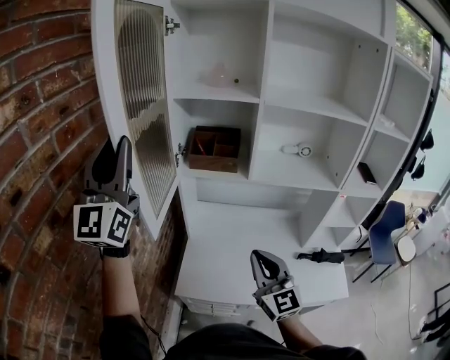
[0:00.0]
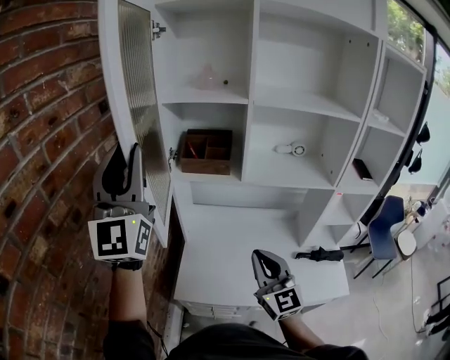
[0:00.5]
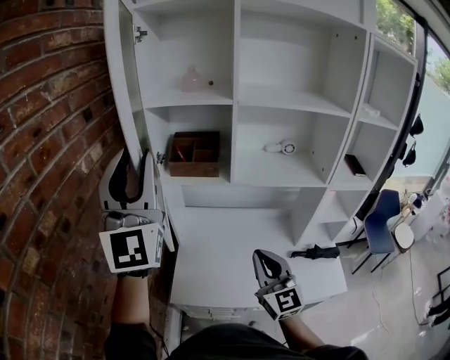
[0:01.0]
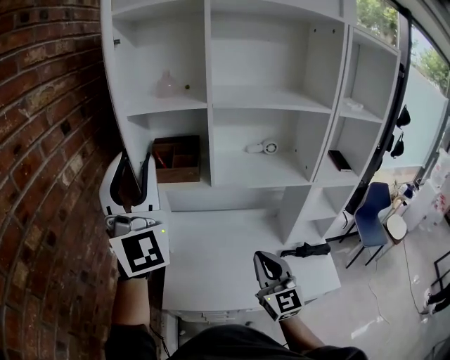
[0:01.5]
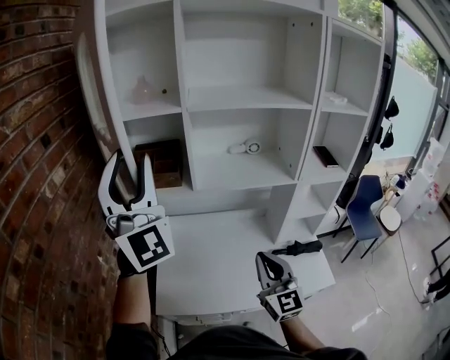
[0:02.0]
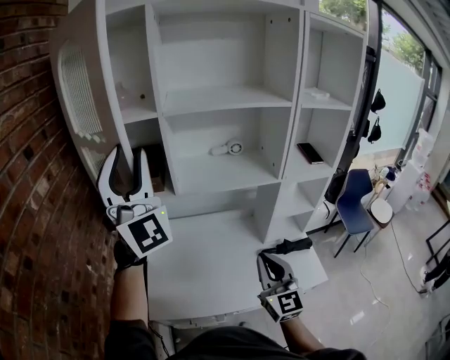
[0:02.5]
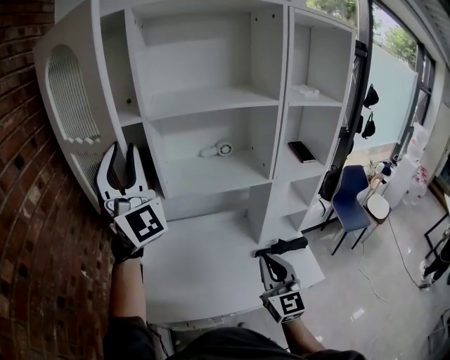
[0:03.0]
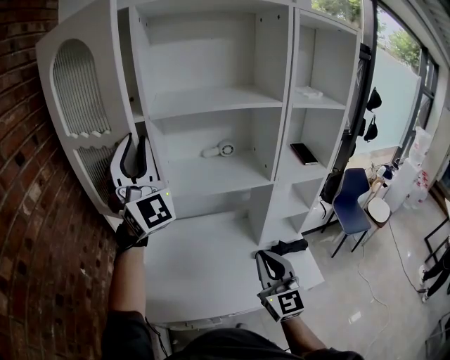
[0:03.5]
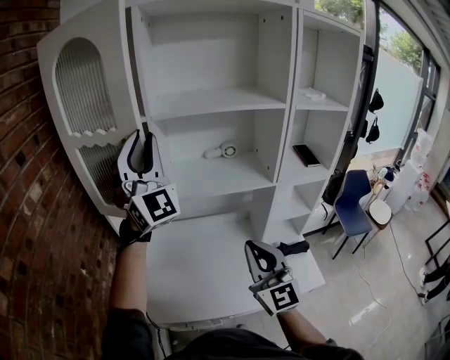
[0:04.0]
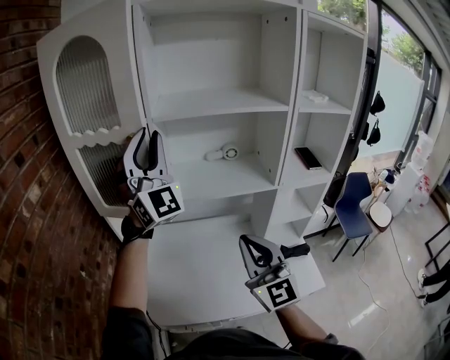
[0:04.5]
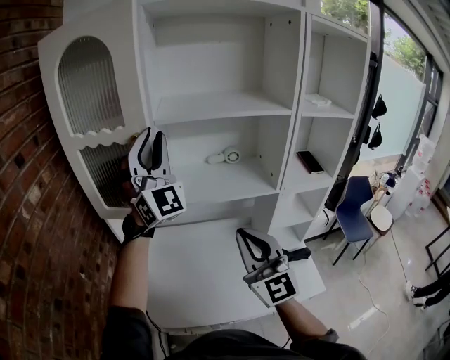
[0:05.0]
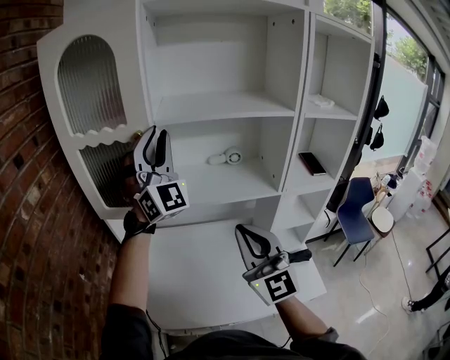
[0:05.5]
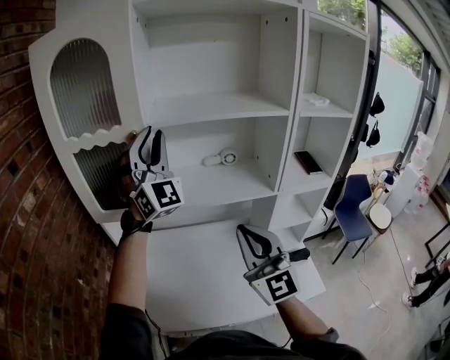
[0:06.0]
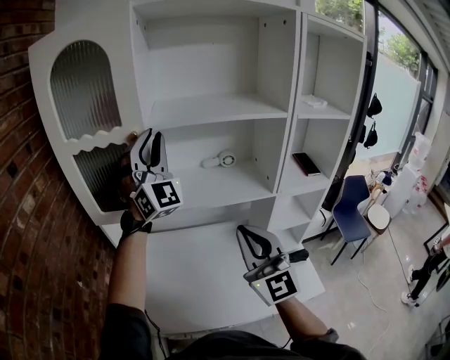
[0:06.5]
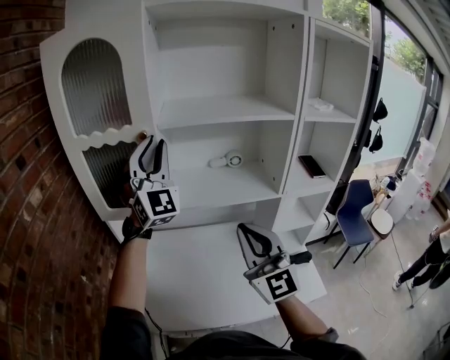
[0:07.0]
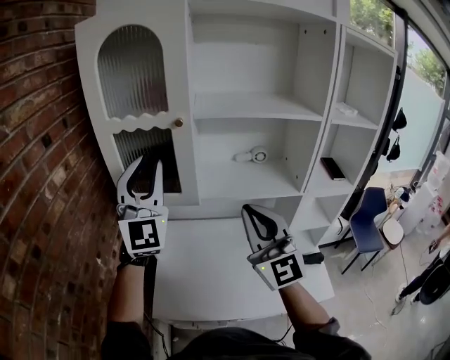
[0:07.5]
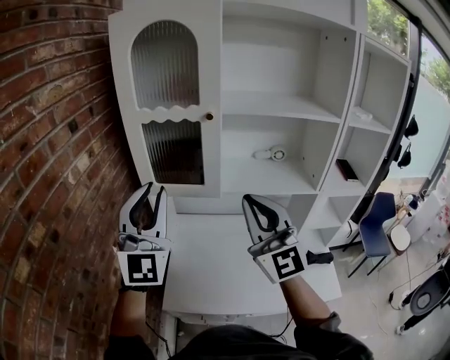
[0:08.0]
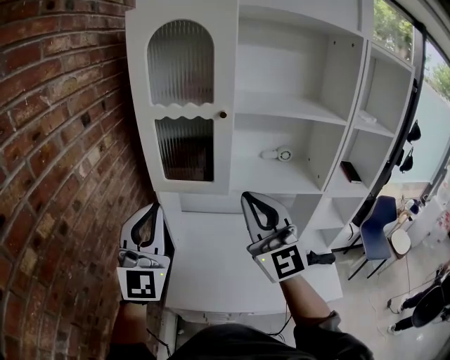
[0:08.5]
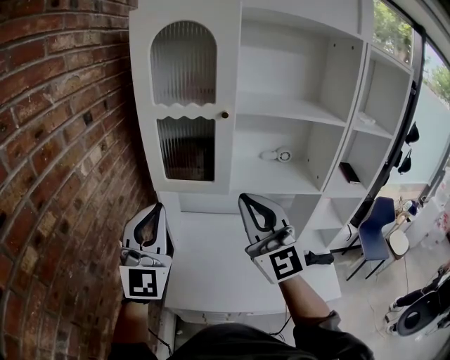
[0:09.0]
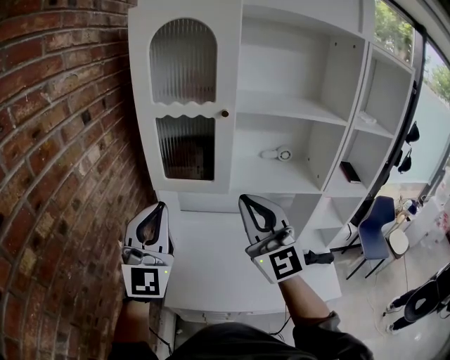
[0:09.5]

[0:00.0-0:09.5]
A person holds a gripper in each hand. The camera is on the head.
0:00.0 to 0:02.0: Both grippers travel together to the right, roughly 20 cm. The left gripper changes its angle by approximately 30 degrees.
0:02.0 to 0:04.0: The right gripper heads upward, covering approximately 5 cm. The left gripper travels forward and to the right by some 15 cm.
0:04.0 to 0:05.5: The left gripper travels forward by roughly 5 cm, while the right gripper goes about 10 cm upward and forward.
0:05.5 to 0:07.5: The left gripper heads to the left and backward, covering about 15 cm, and swivels approximately 20 degrees. The right gripper travels to the left by approximately 5 cm.
0:07.5 to 0:09.5: The right gripper is displaced to the left by roughly 10 cm. The left gripper moves backward, to the left and downward, about 15 cm.

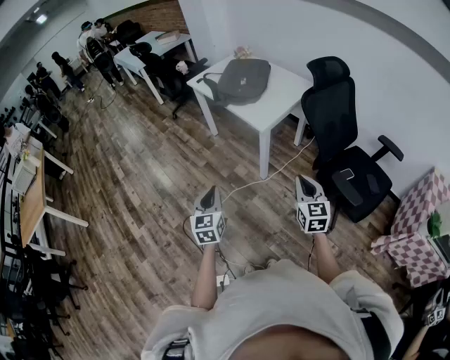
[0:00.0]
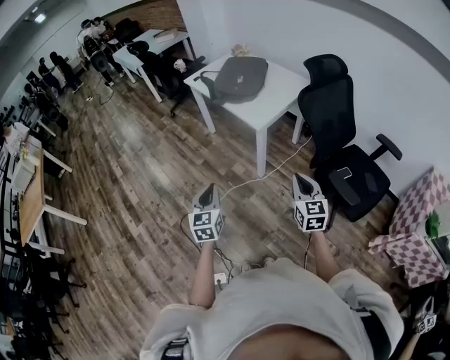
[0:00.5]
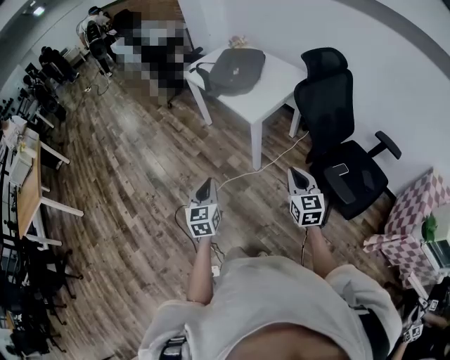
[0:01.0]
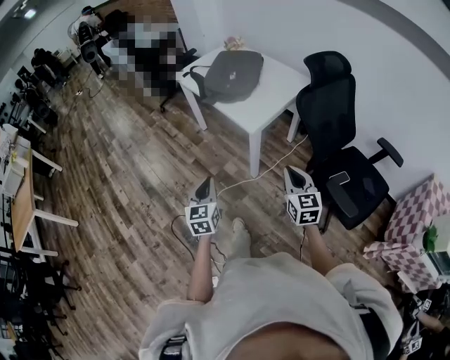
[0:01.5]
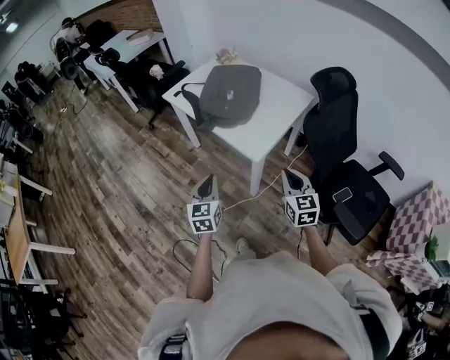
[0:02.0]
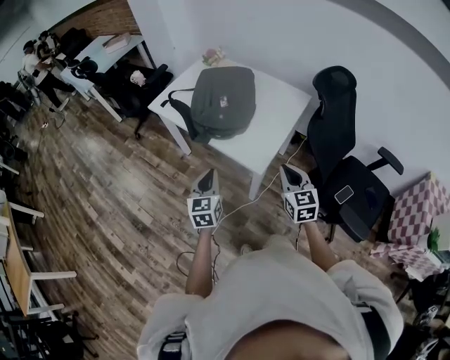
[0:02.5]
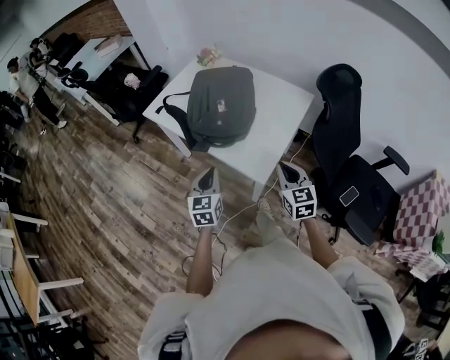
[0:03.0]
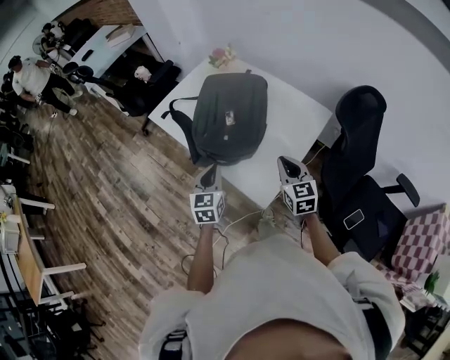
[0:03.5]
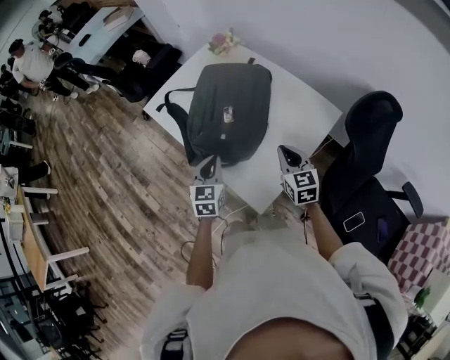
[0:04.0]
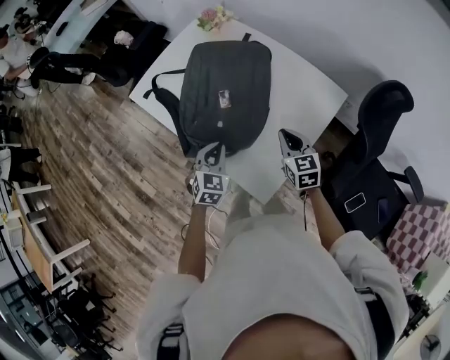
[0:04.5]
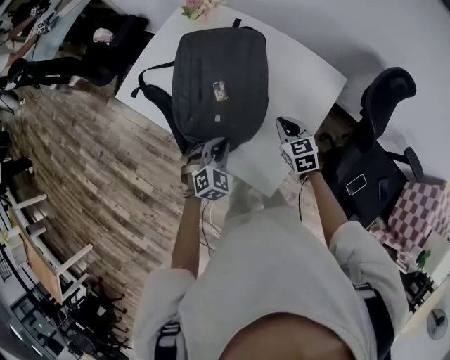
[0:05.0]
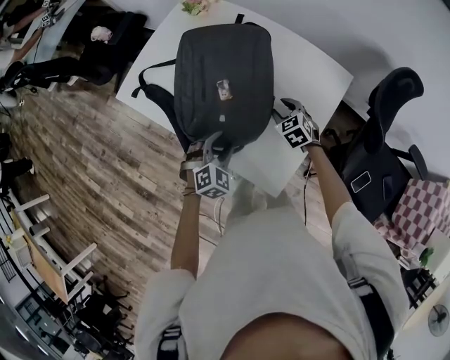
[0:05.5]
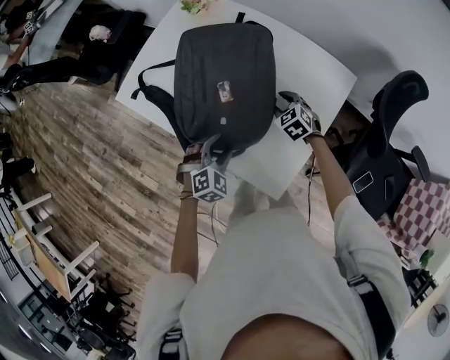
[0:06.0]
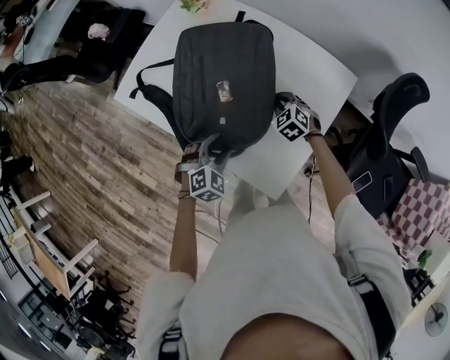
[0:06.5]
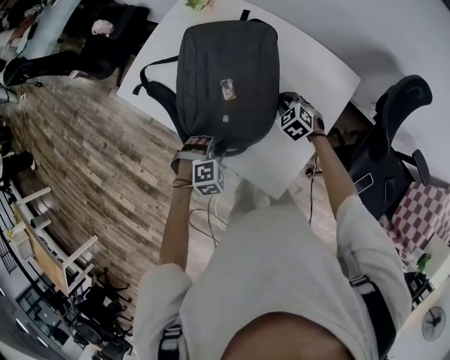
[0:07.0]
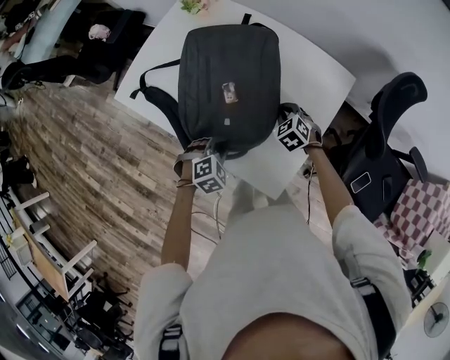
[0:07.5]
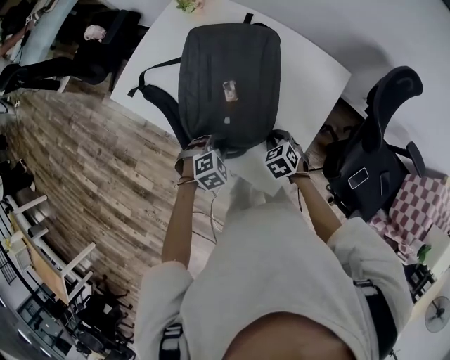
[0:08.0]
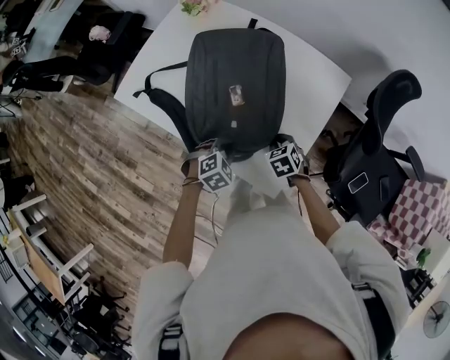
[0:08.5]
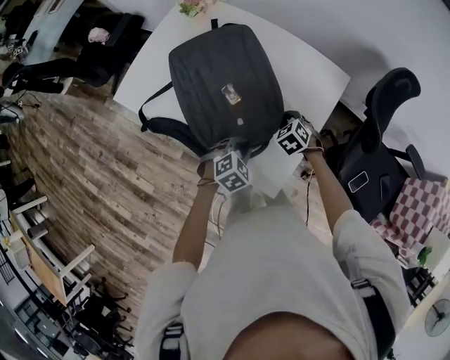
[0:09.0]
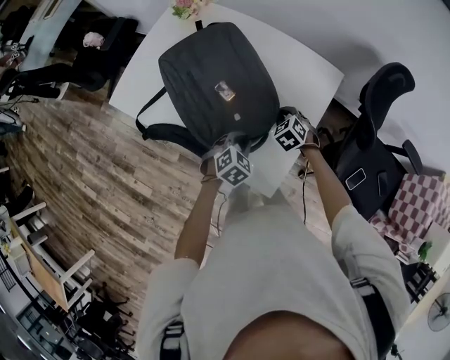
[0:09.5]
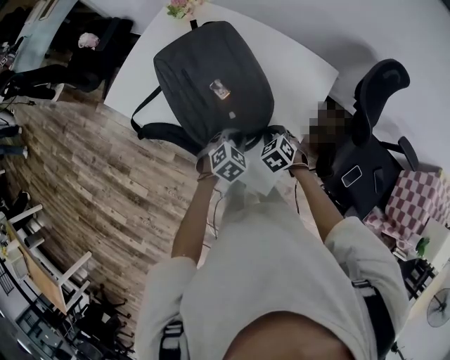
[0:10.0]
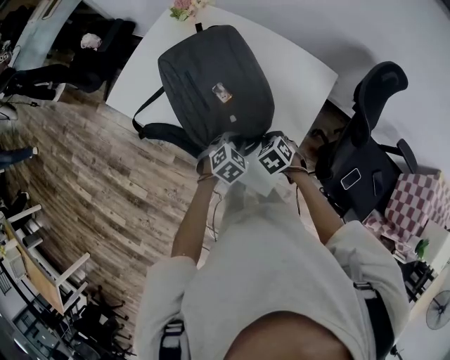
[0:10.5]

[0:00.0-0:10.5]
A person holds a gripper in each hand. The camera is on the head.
0:00.0 to 0:02.0: Both grippers move forward, about 25 cm.
0:02.0 to 0:04.0: The grippers both shift forward by approximately 35 cm.
0:04.0 to 0:06.5: The left gripper goes some 10 cm downward, rolls clockwise, seen from behind, by about 50 degrees, and opens up, while the right gripper shifts approximately 20 cm downward and forward, angles its fingers downward, by approximately 30 degrees, and opens and closes again.
0:06.5 to 0:08.5: The right gripper is displaced backward by some 15 cm, and rotates some 30 degrees, while the left gripper changes place by approximately 5 cm, and closes up.
0:08.5 to 0:10.5: The right gripper moves approximately 10 cm forward and comes back, while the left gripper goes about 5 cm to the right.

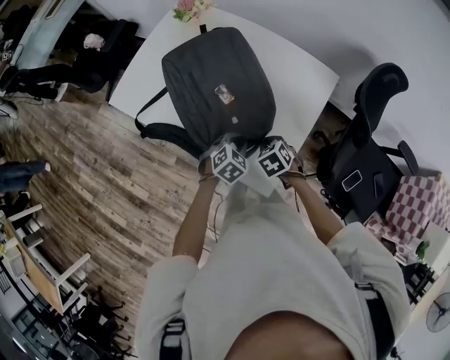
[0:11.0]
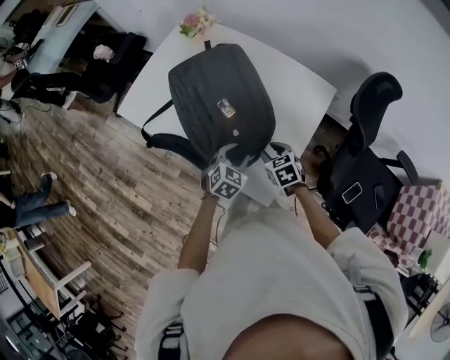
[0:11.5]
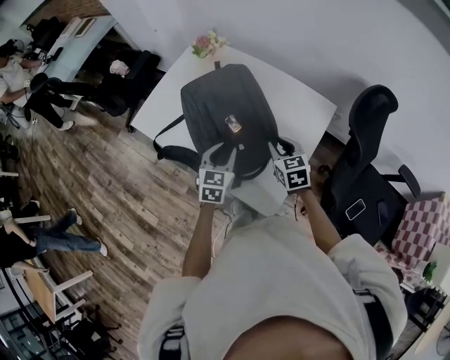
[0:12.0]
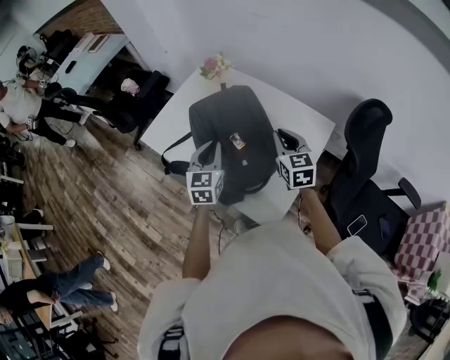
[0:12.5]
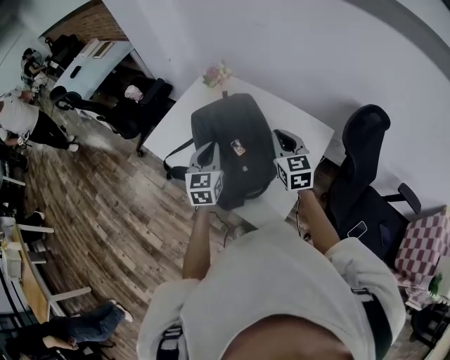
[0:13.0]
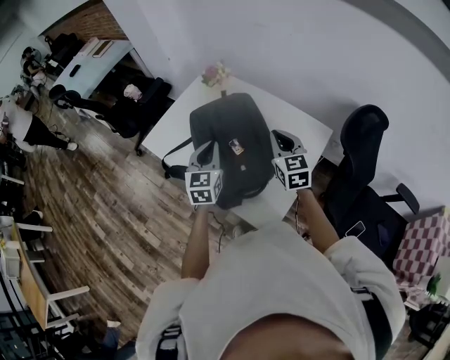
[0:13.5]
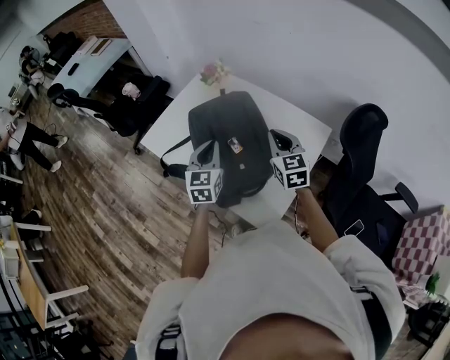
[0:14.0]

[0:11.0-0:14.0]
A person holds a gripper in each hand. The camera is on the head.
0:11.0 to 0:12.5: The left gripper heads upward and to the left, covering some 25 cm, tips its fingers upward by about 40 degrees, and opens, then closes once more. Meanwhile the right gripper goes some 25 cm upward and forward, angles its fingers upward, by roughly 50 degrees, and opens, then closes once more.
0:12.5 to 0:14.0: The grippers make only small movements.

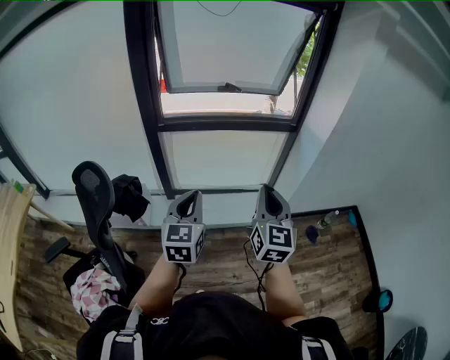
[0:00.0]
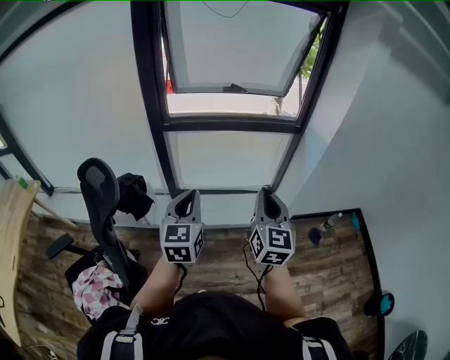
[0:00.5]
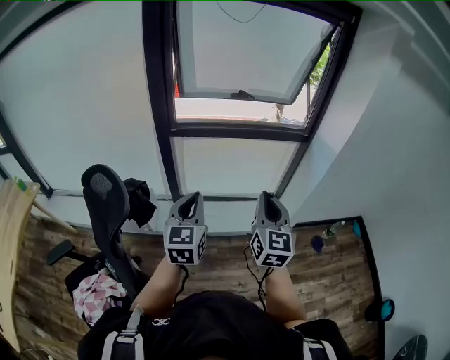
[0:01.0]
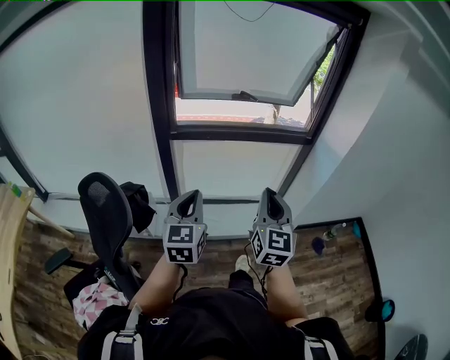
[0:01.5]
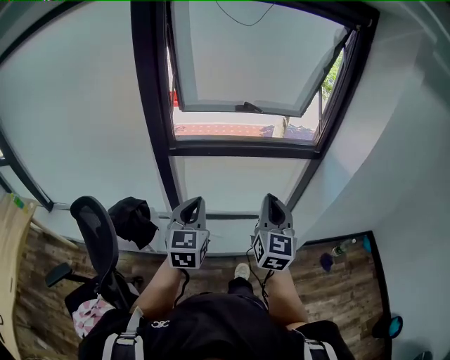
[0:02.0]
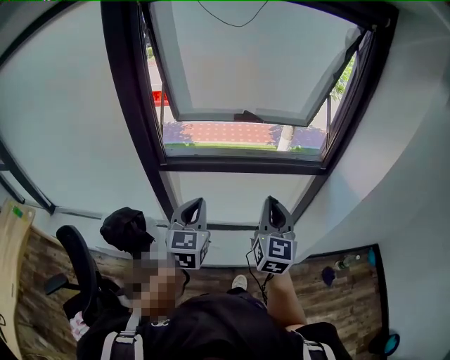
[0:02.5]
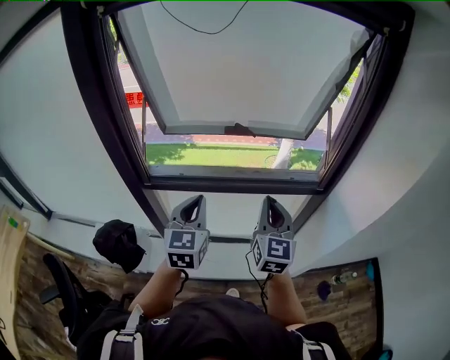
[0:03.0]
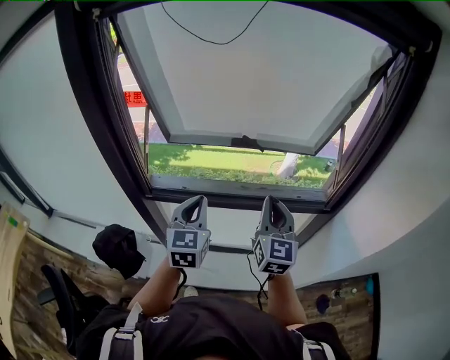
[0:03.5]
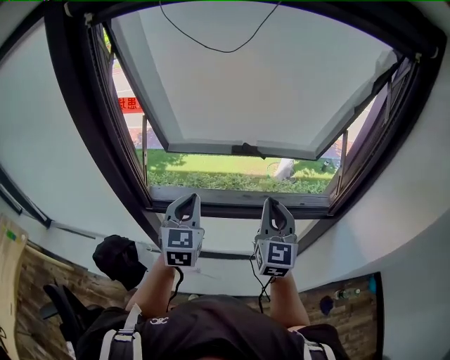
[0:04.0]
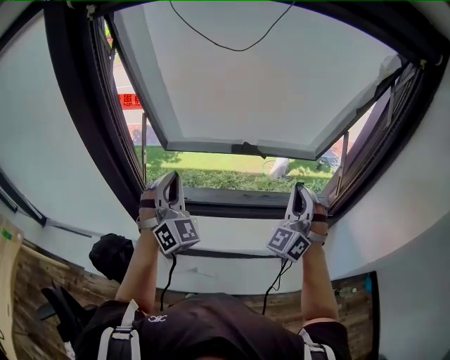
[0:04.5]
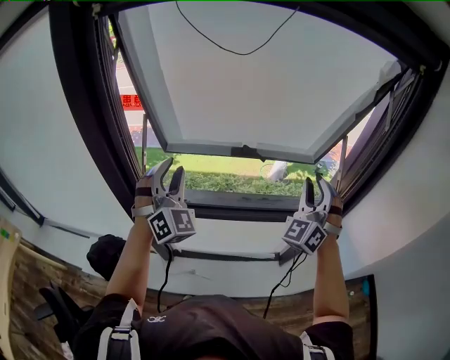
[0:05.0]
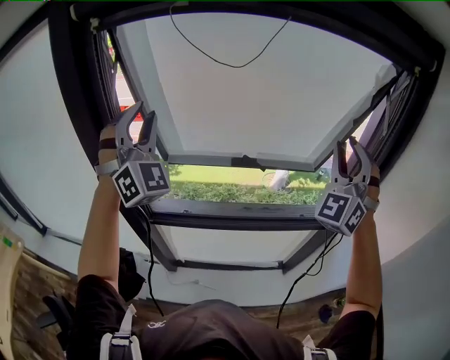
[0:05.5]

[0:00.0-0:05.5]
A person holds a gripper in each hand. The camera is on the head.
0:00.0 to 0:02.0: The right gripper travels forward by about 15 cm; the left gripper shifts roughly 20 cm forward and to the left.
0:02.0 to 0:03.5: Both grippers move forward, some 35 cm.
0:03.5 to 0:05.5: The left gripper travels upward and to the left by some 30 cm, twists some 60 degrees clockwise, seen from behind, and opens its fingers. Meanwhile the right gripper goes roughly 25 cm upward, and twists about 70 degrees counterclockwise, seen from behind.
